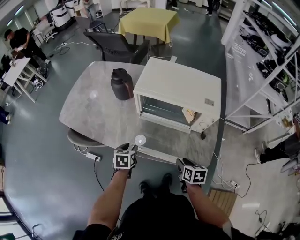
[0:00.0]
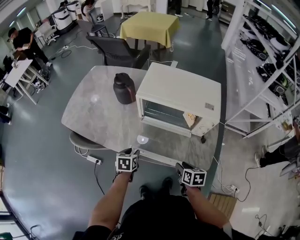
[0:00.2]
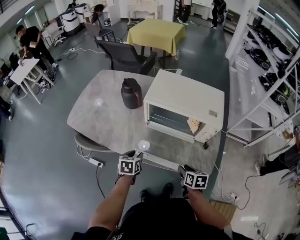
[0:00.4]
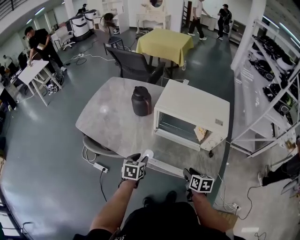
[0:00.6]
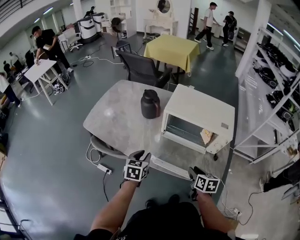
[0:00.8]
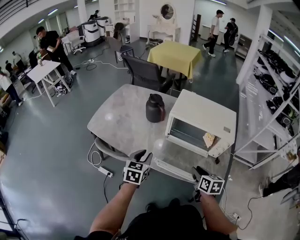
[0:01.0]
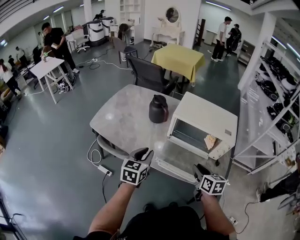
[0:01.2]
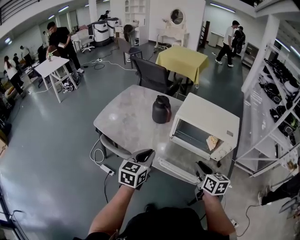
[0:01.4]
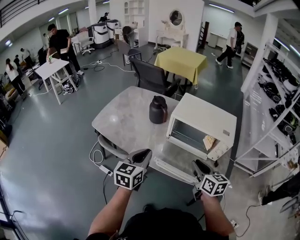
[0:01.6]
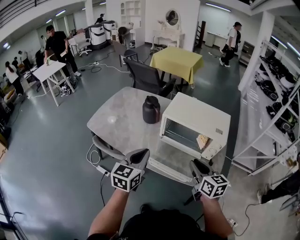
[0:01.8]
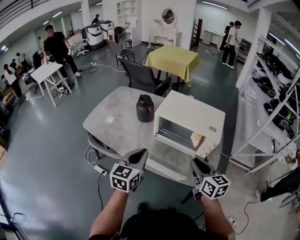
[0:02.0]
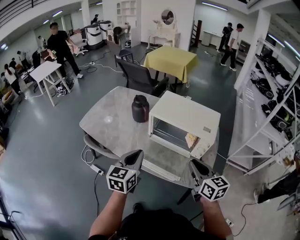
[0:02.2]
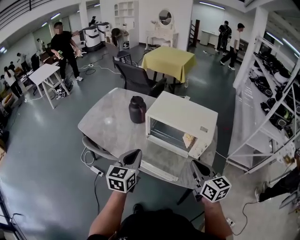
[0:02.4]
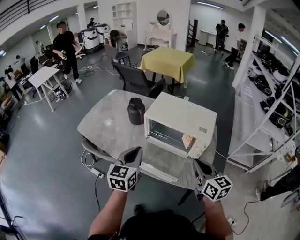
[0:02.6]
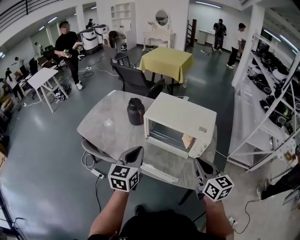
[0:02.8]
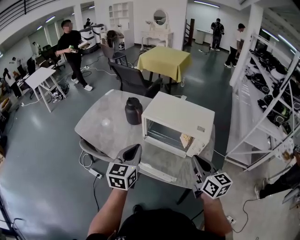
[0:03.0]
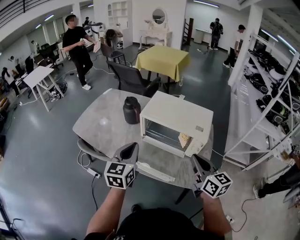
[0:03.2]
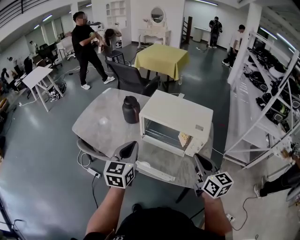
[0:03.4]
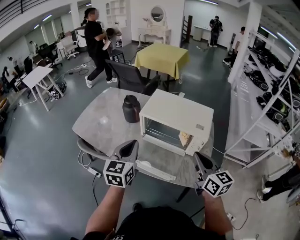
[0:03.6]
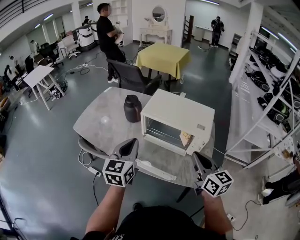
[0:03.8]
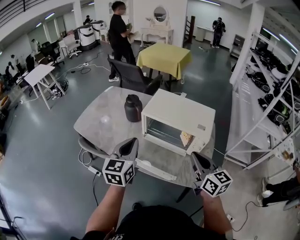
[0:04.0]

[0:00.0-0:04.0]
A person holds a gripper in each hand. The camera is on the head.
0:00.0 to 0:01.4: The left gripper travels upward by about 25 cm, angles its fingers upward, by some 30 degrees, and closes up; the right gripper moves upward and to the left, about 20 cm, and turns by some 30 degrees.
0:01.4 to 0:02.6: Both grippers move to the right and upward, approximately 15 cm. The right gripper closes up.
0:02.6 to 0:04.0: The grippers make only small movements.

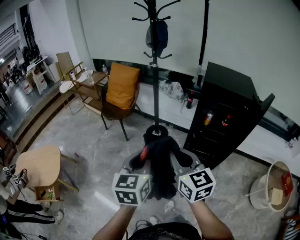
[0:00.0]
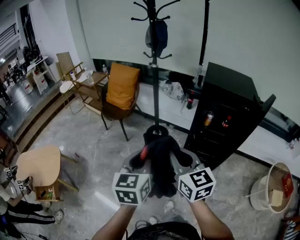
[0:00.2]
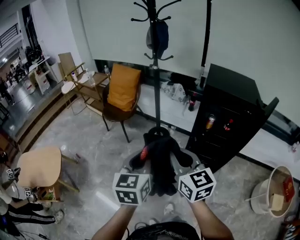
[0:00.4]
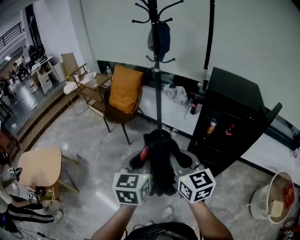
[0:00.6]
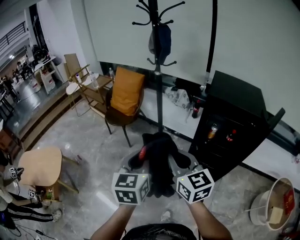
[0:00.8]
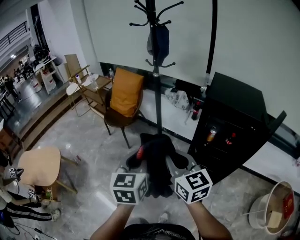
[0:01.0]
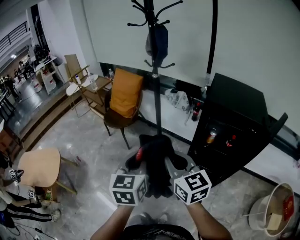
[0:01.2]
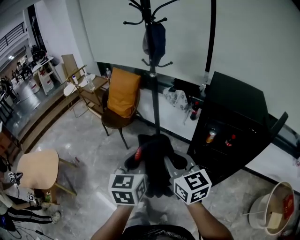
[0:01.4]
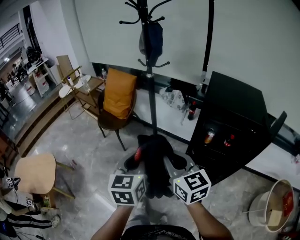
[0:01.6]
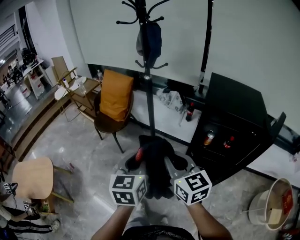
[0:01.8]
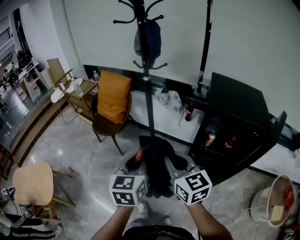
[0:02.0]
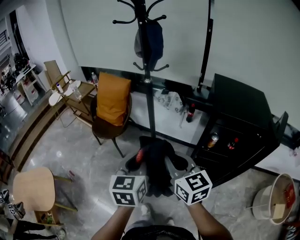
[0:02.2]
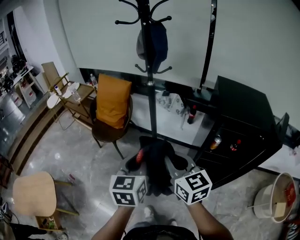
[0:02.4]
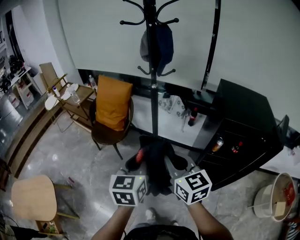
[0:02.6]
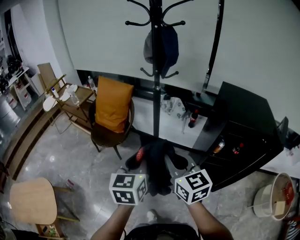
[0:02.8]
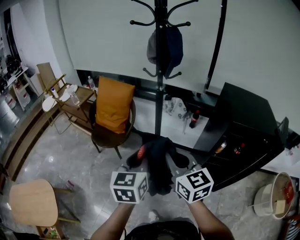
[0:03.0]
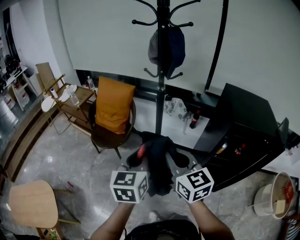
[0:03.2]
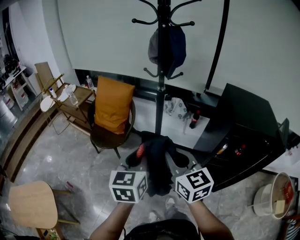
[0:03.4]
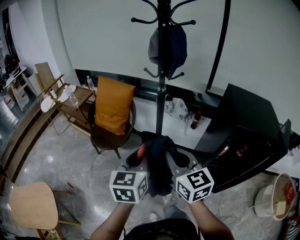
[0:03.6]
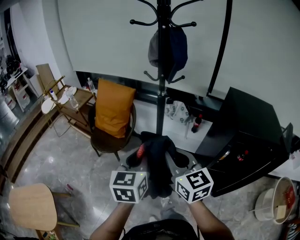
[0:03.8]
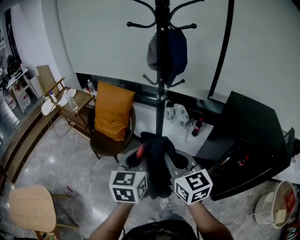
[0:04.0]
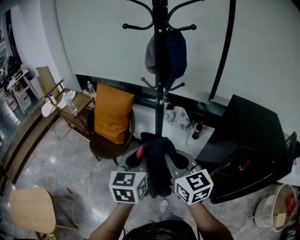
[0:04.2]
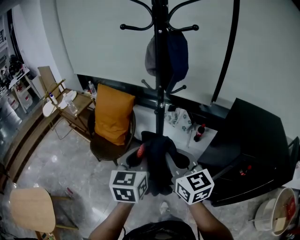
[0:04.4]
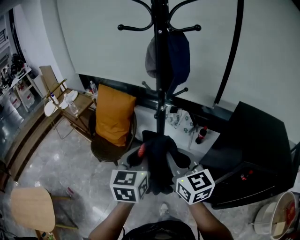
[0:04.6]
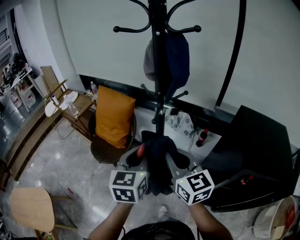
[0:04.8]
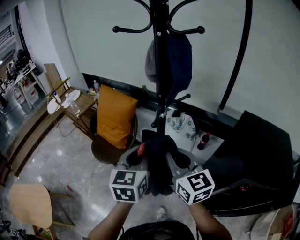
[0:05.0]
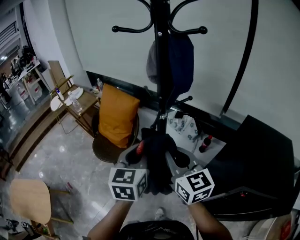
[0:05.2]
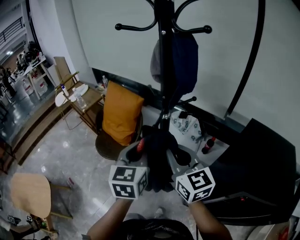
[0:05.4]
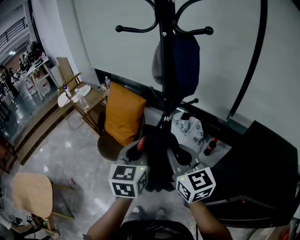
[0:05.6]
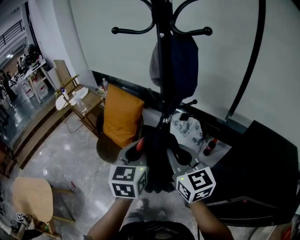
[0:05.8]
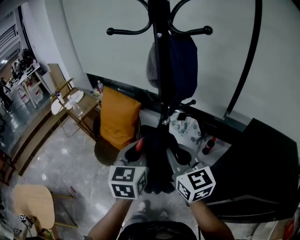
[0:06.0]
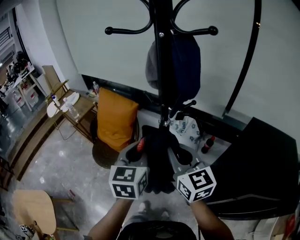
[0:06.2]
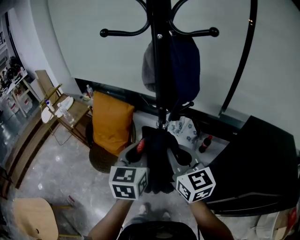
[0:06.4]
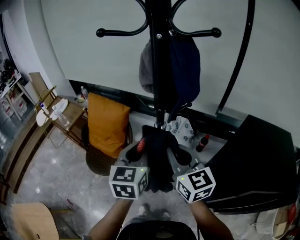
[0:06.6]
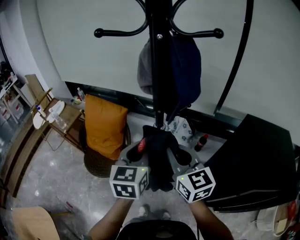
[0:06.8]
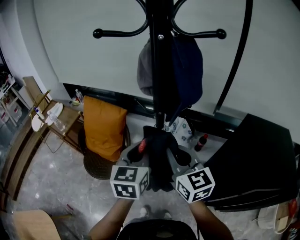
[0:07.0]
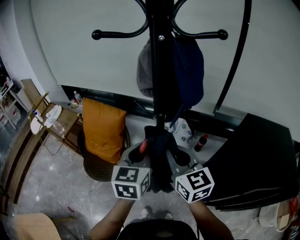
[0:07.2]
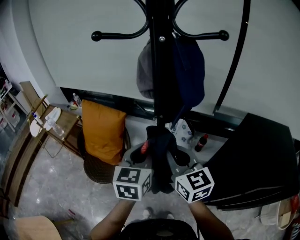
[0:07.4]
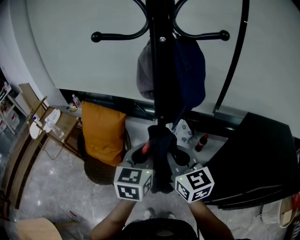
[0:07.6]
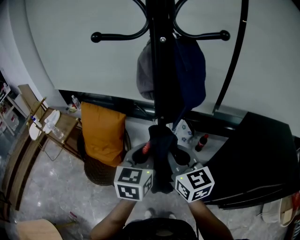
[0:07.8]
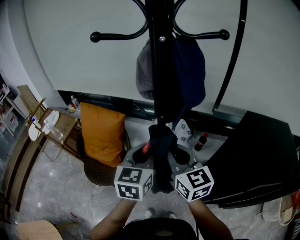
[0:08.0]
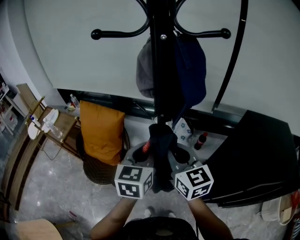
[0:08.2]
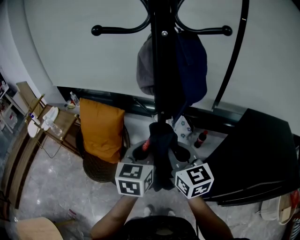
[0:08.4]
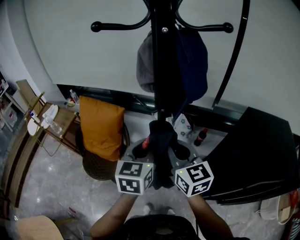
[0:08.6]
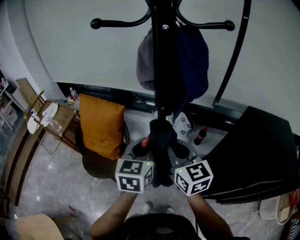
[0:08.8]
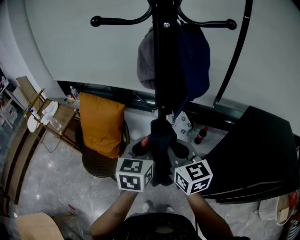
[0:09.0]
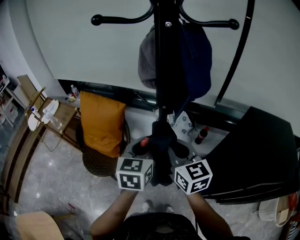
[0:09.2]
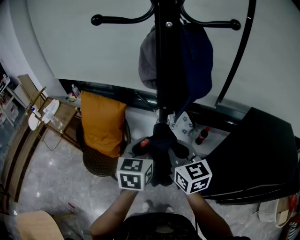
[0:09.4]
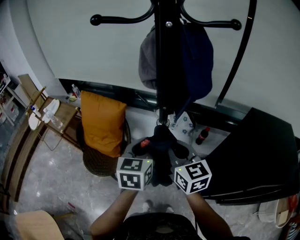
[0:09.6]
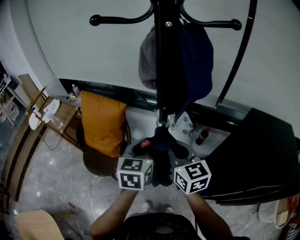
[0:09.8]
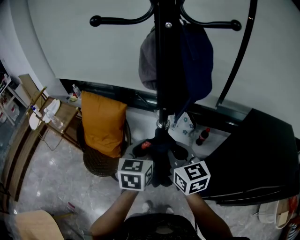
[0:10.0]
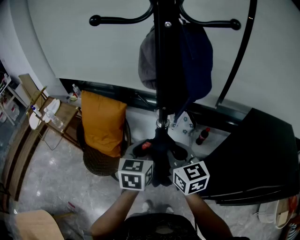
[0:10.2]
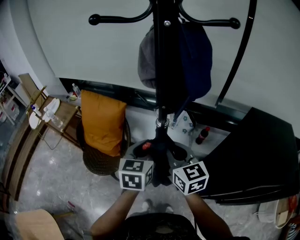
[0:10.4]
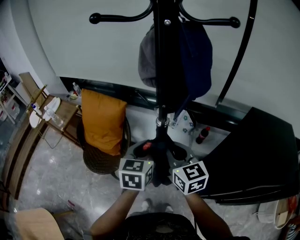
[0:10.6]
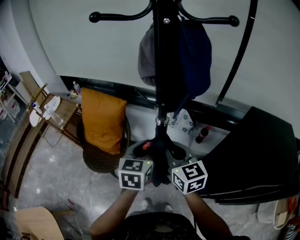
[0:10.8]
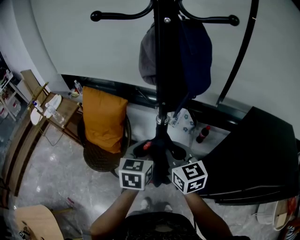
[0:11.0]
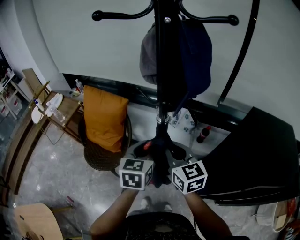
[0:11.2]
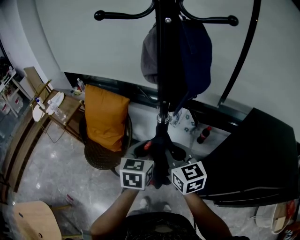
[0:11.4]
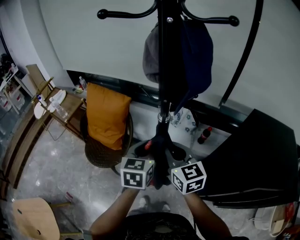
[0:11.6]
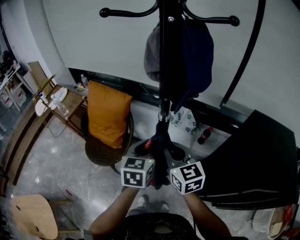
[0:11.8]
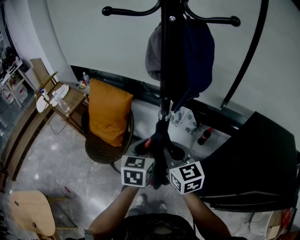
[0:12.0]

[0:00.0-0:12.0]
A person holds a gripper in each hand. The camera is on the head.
0:00.0 to 0:01.6: Both grippers move forward and to the right, some 15 cm.
0:01.6 to 0:03.0: The two grippers go some 20 cm forward and to the left.
0:03.0 to 0:04.4: The grippers both shift forward by some 15 cm.
0:04.4 to 0:06.0: Both grippers move forward, roughly 10 cm.
0:06.0 to 0:07.6: Both grippers travel together forward, some 5 cm.
0:07.6 to 0:09.0: There are only small adjustments of the grippers.
0:09.0 to 0:12.0: The grippers make only small movements.

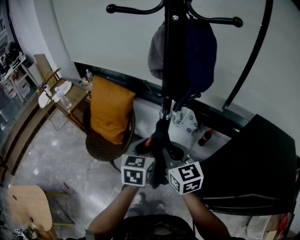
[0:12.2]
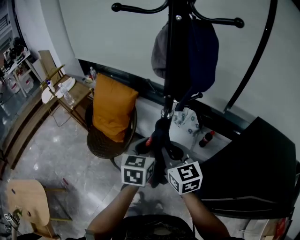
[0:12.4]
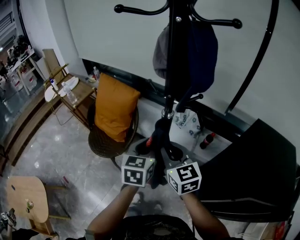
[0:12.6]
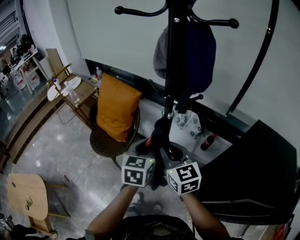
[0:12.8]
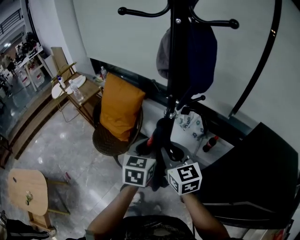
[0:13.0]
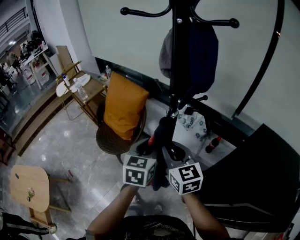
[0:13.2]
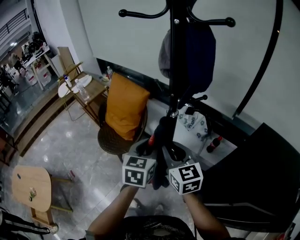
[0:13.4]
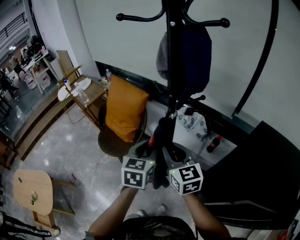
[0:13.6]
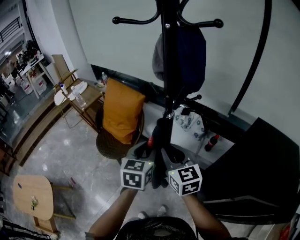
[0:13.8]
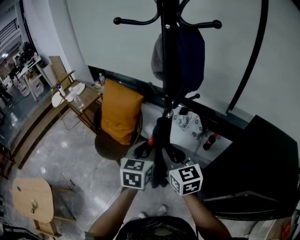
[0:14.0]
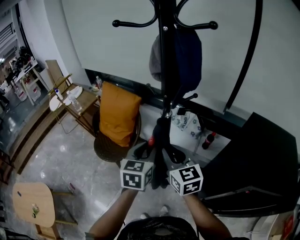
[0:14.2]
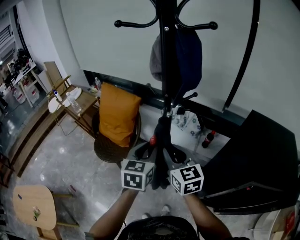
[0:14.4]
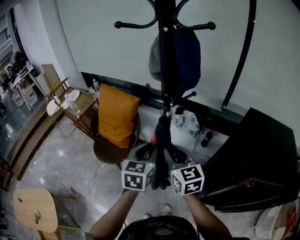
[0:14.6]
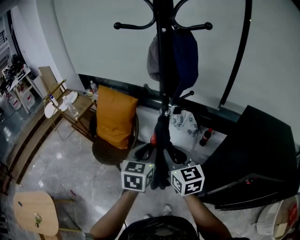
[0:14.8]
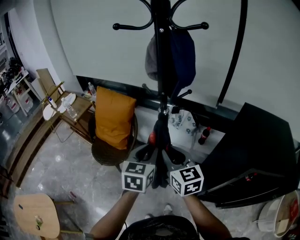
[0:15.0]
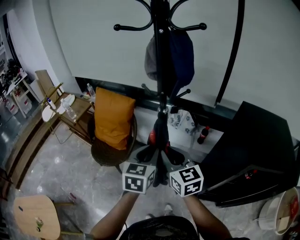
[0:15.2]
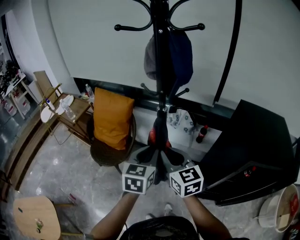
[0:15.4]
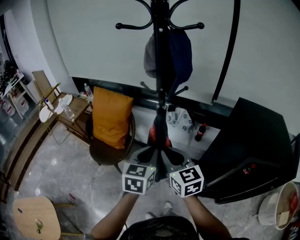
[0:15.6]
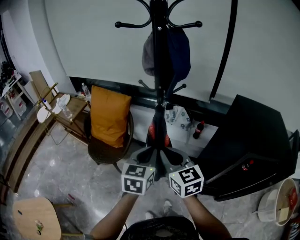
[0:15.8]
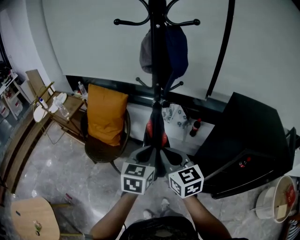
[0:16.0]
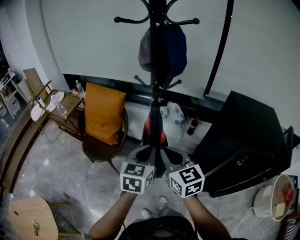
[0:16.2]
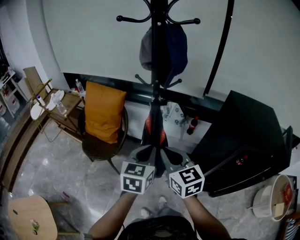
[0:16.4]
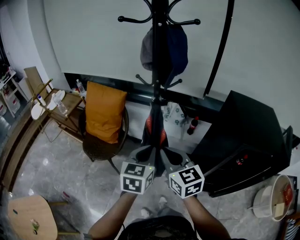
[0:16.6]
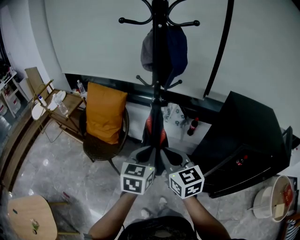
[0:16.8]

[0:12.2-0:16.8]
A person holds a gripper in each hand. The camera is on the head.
0:12.2 to 0:13.8: The grippers make only small movements.
0:13.8 to 0:15.2: The two grippers go some 5 cm backward.
0:15.2 to 0:16.8: The grippers both shift backward by approximately 5 cm.

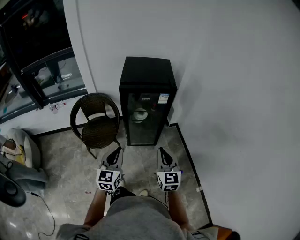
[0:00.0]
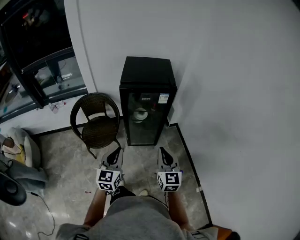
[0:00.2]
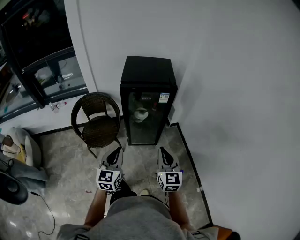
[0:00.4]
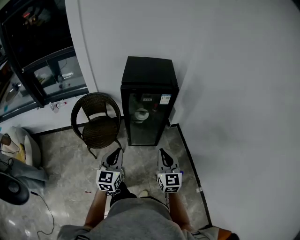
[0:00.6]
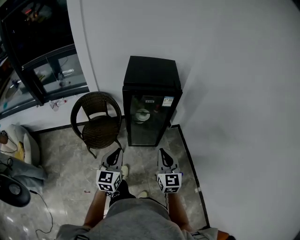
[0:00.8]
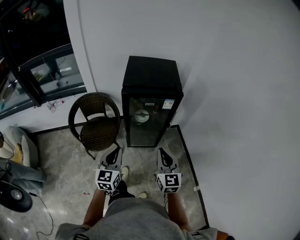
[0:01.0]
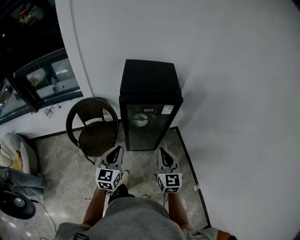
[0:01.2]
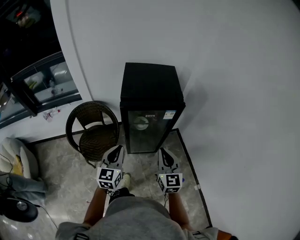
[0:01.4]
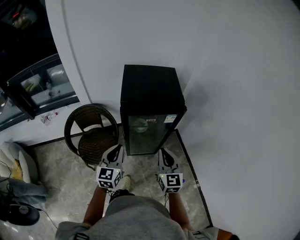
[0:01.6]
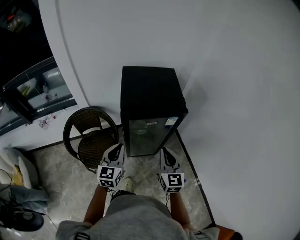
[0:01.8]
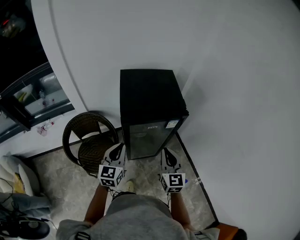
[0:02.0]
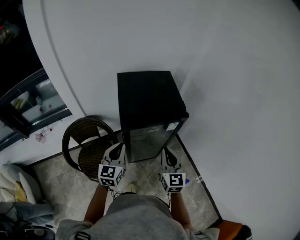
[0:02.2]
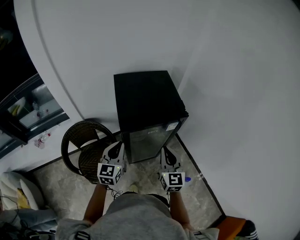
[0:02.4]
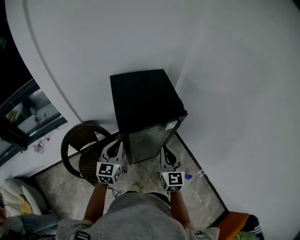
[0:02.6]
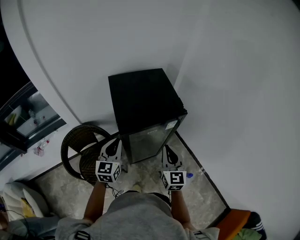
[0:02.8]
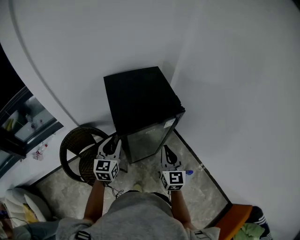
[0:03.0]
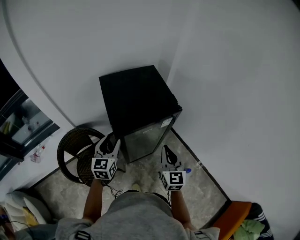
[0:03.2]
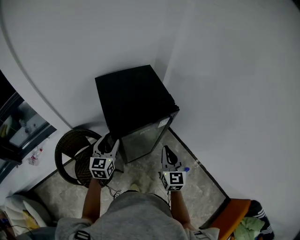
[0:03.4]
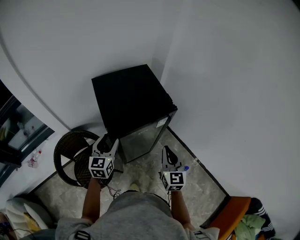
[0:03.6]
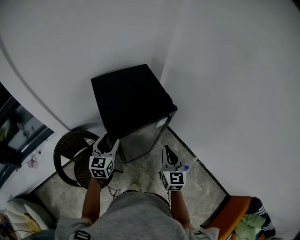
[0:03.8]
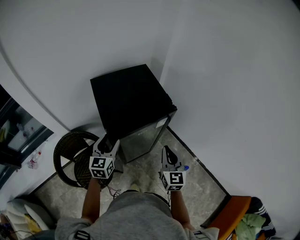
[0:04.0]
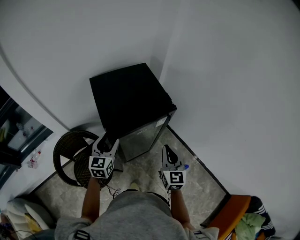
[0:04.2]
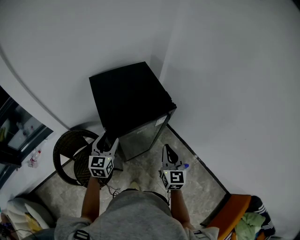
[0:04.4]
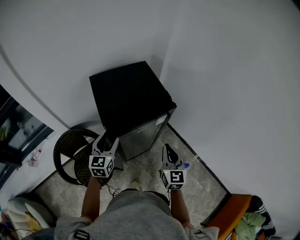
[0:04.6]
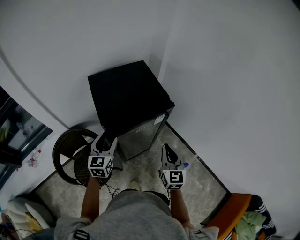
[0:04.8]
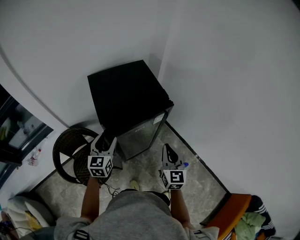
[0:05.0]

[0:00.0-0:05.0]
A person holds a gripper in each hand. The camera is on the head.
0:00.0 to 0:01.6: Both grippers travel together forward, about 20 cm.
0:01.6 to 0:03.4: The left gripper heads forward, covering roughly 20 cm, and opens its fingers; the right gripper shifts about 10 cm forward, and turns by roughly 20 degrees.
0:03.4 to 0:05.0: The grippers move only a little.
